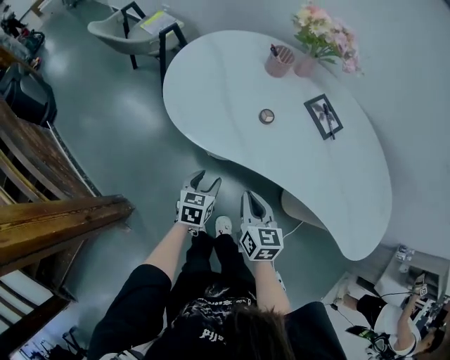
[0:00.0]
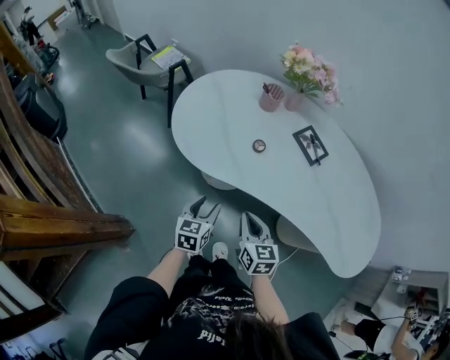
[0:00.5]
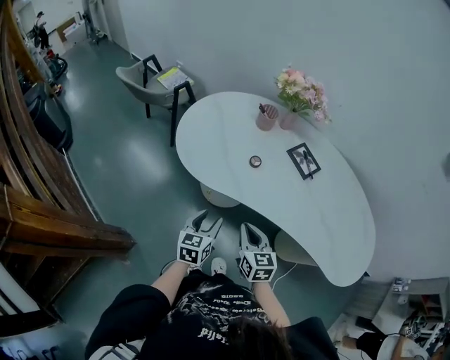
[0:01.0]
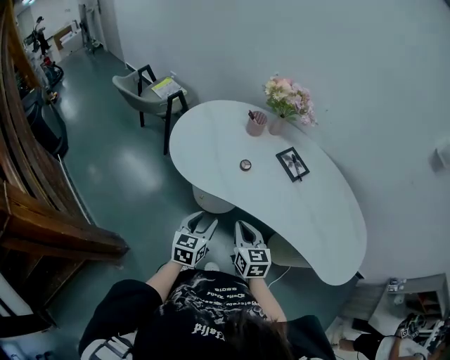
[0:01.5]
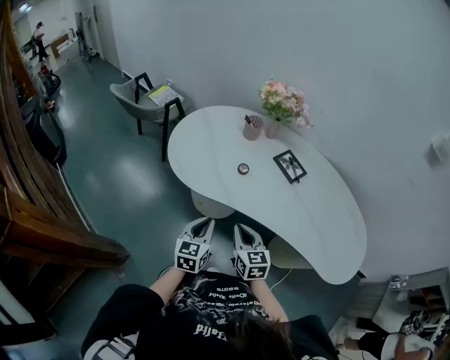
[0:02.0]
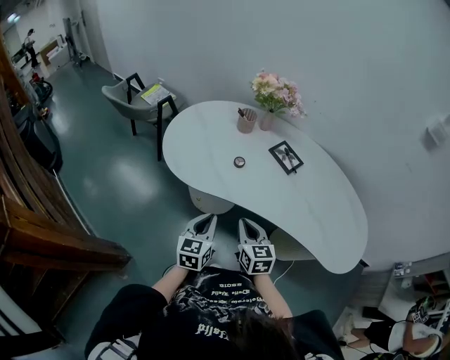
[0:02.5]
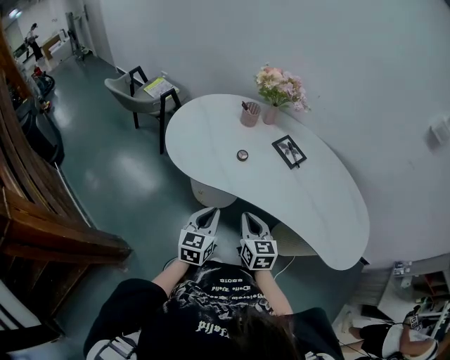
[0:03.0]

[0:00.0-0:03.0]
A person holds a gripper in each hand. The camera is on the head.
0:00.0 to 0:01.5: The right gripper goes some 10 cm upward, while the left gripper shifts approximately 20 cm upward and backward.
0:01.5 to 0:03.0: The left gripper closes up.

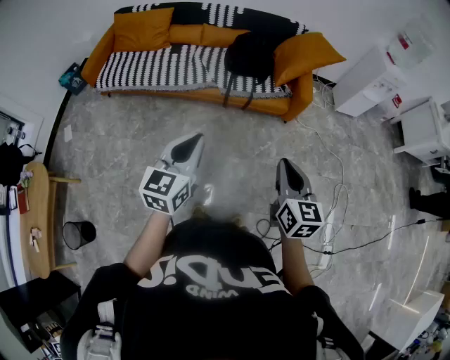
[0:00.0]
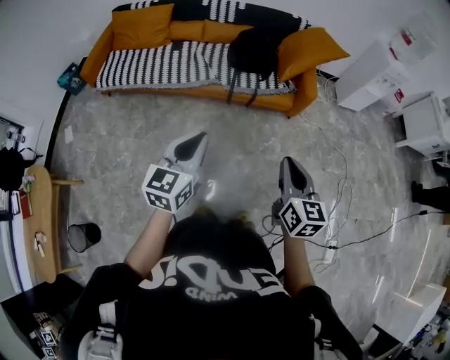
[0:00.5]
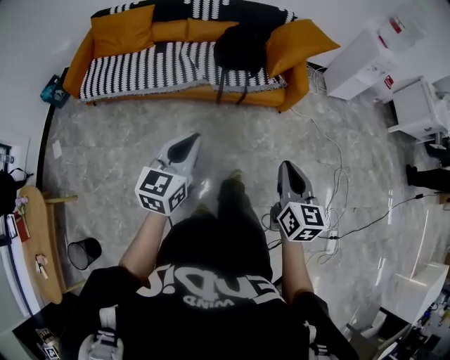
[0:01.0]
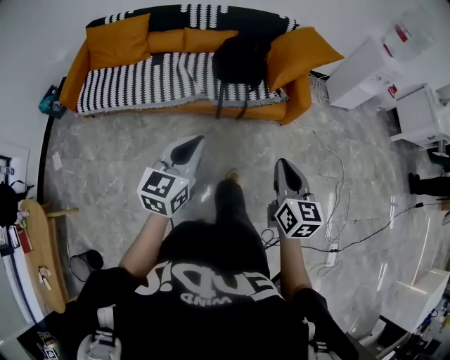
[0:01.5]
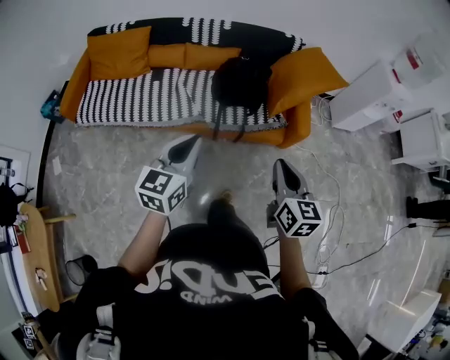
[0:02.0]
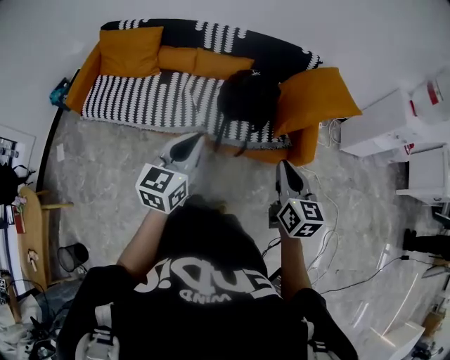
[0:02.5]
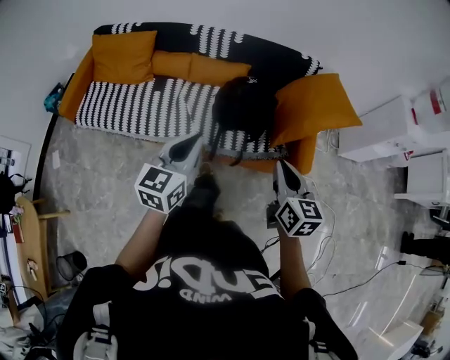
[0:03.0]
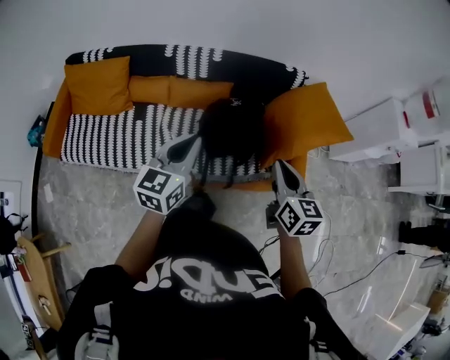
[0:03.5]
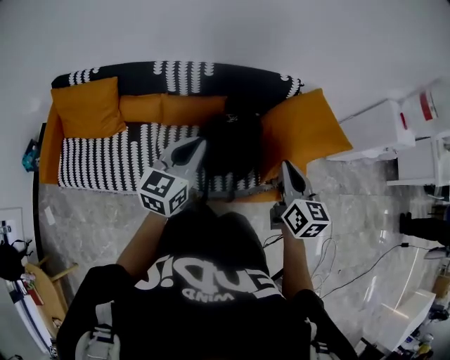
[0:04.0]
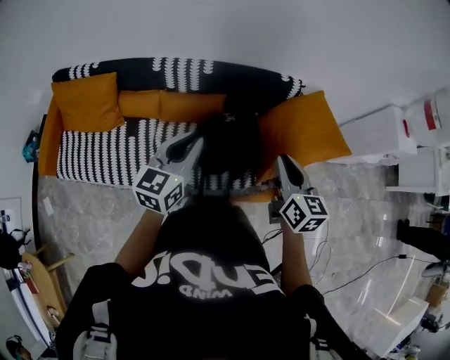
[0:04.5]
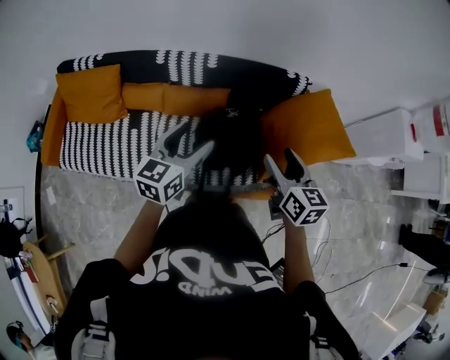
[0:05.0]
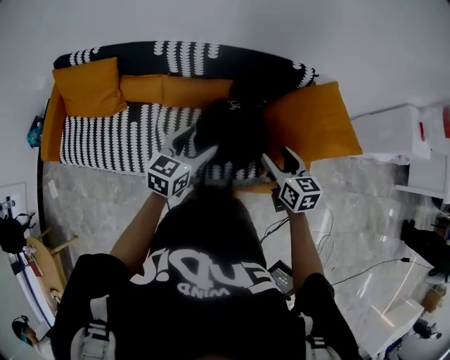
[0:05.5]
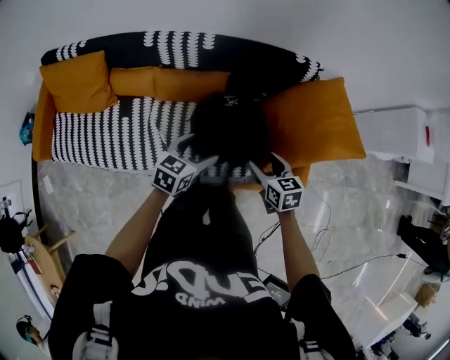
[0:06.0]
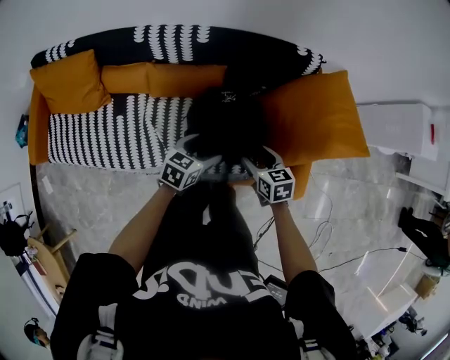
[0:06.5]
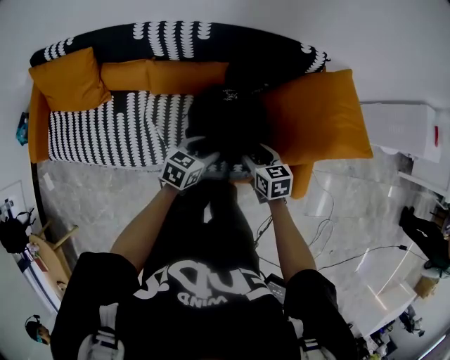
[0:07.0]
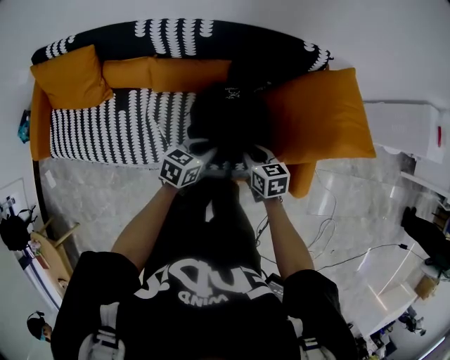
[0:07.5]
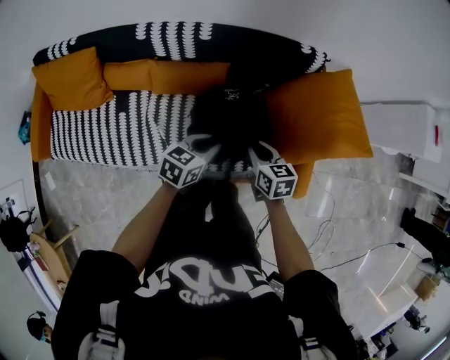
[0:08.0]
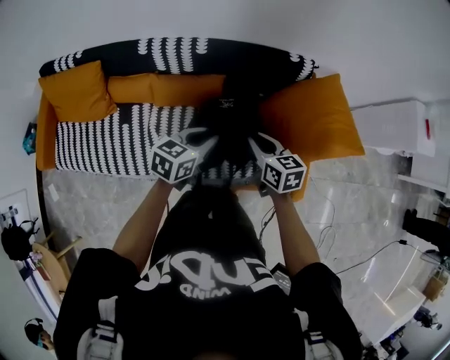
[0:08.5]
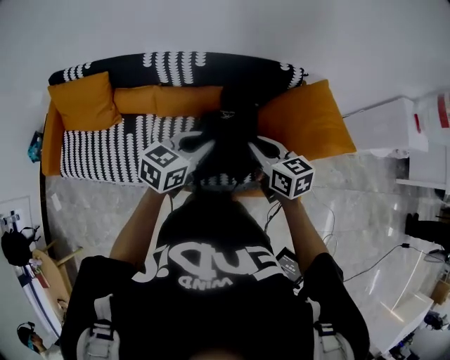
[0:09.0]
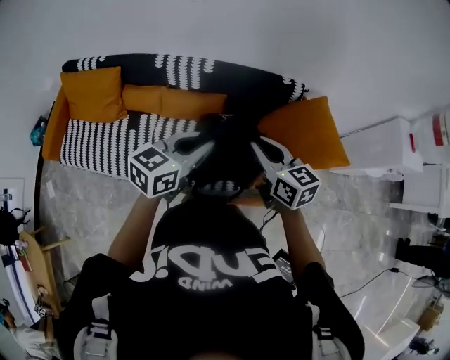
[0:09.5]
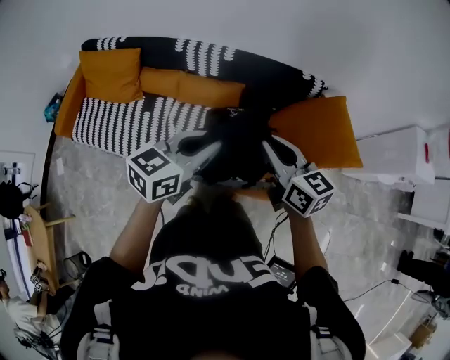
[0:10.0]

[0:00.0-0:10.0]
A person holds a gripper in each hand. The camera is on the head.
0:00.0 to 0:02.0: The two grippers go some 35 cm forward.
0:02.0 to 0:04.0: Both grippers are carried forward, about 50 cm.
0:04.0 to 0:06.0: The left gripper is displaced downward by roughly 25 cm, swivels roughly 30 degrees, and opens. The right gripper is displaced downward and forward by approximately 25 cm, swivels roughly 30 degrees, and opens.
0:06.0 to 0:08.0: The left gripper travels downward and back again, roughly 10 cm each way, and closes; the right gripper is displaced forward by about 5 cm, and closes.
0:08.0 to 0:10.0: The right gripper travels upward by about 30 cm, and rotates roughly 30 degrees. Meanwhile the left gripper travels upward and backward by approximately 30 cm, and turns by some 20 degrees.

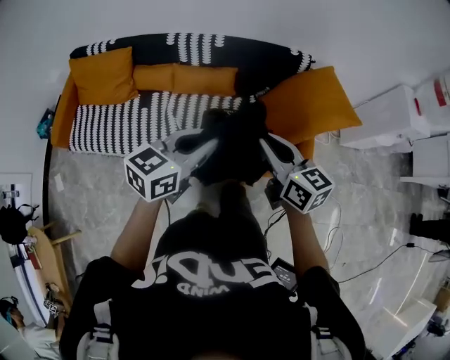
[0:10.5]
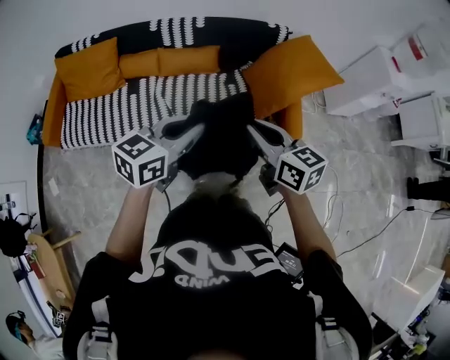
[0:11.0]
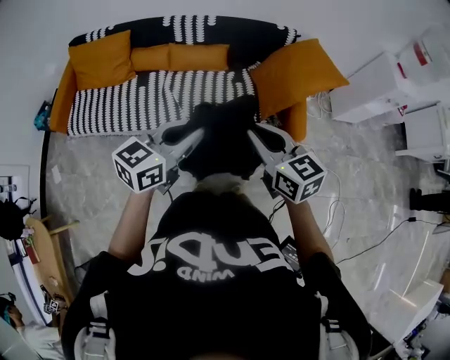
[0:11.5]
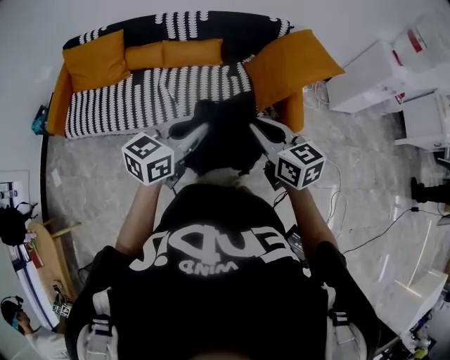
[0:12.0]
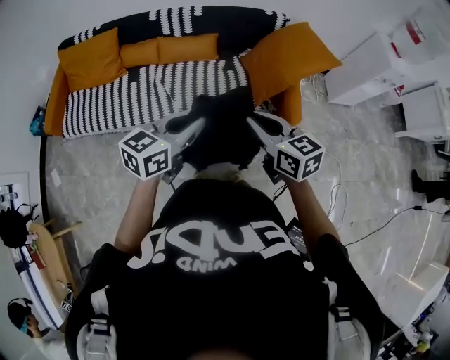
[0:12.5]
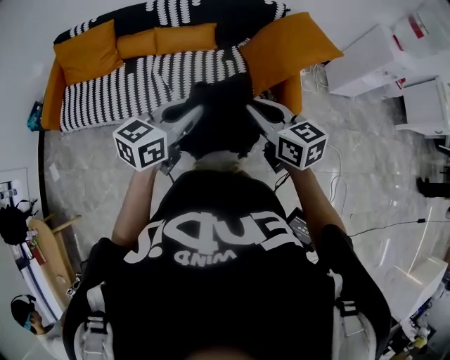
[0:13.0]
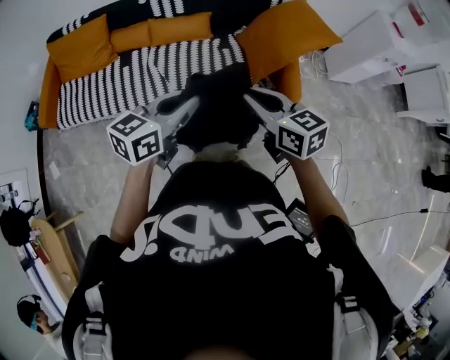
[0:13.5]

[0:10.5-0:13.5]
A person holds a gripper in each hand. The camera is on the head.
0:10.5 to 0:12.0: Both grippers move backward, some 20 cm.
0:12.0 to 0:13.5: The grippers stay close to where they were, moving slightly.

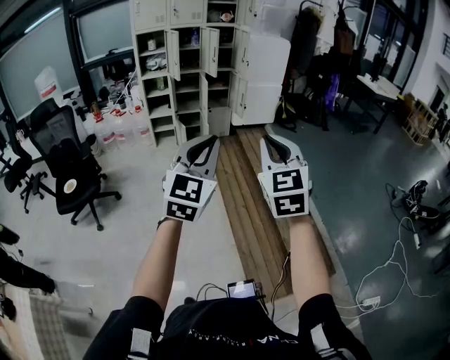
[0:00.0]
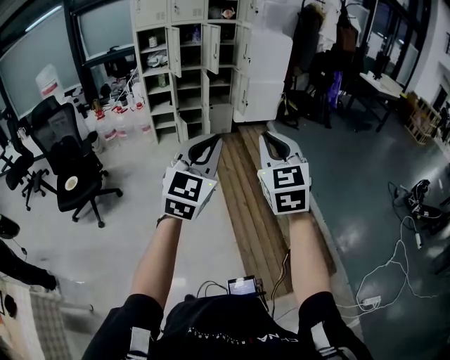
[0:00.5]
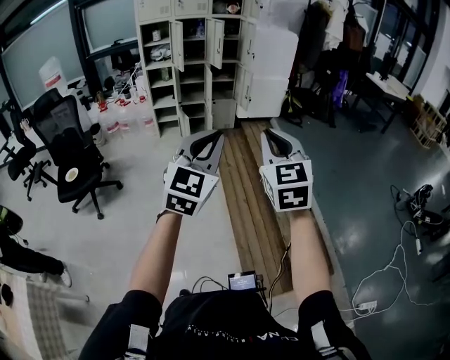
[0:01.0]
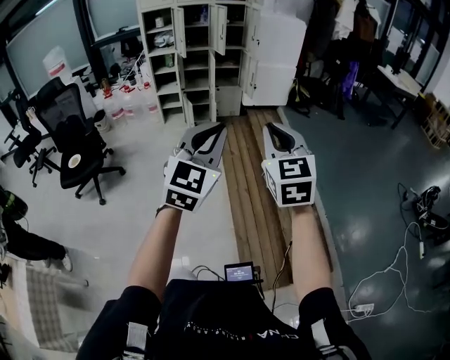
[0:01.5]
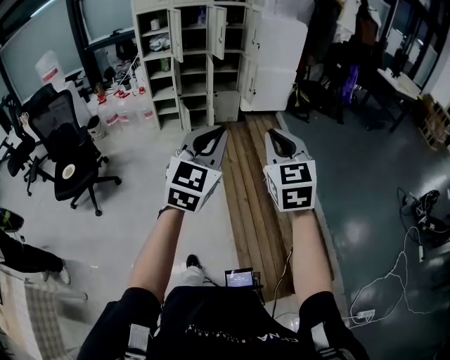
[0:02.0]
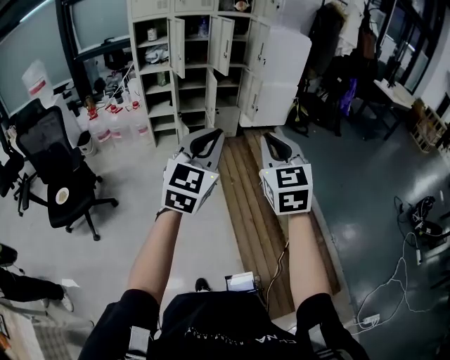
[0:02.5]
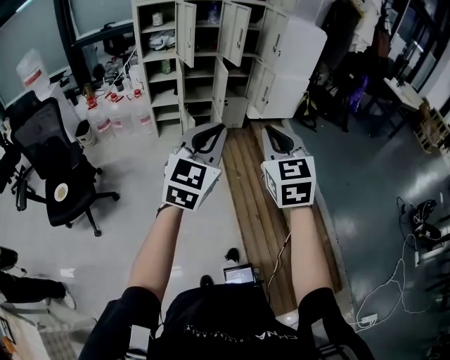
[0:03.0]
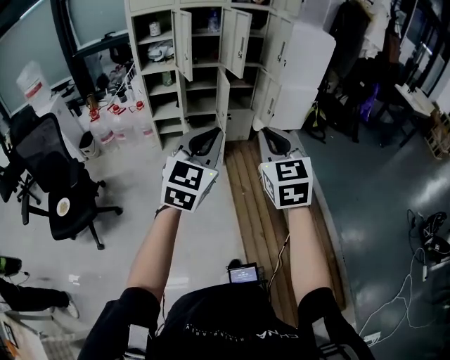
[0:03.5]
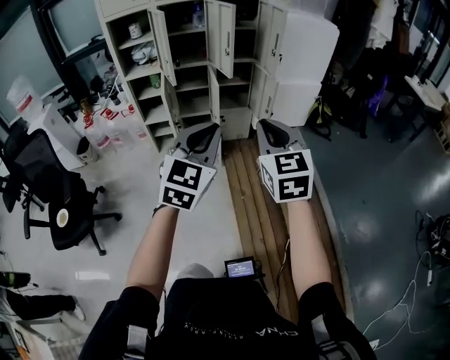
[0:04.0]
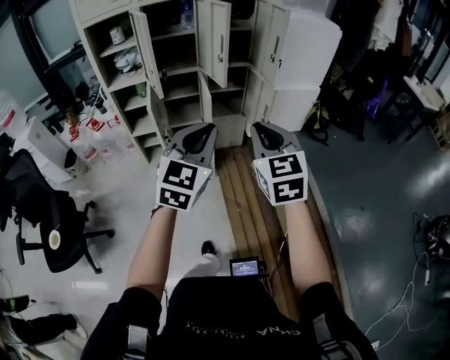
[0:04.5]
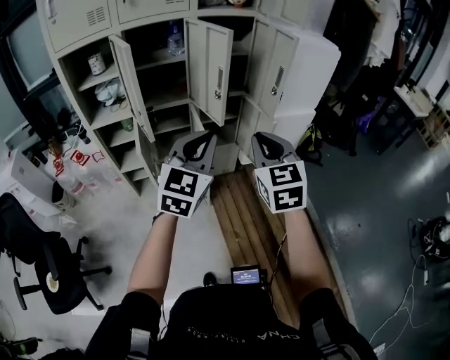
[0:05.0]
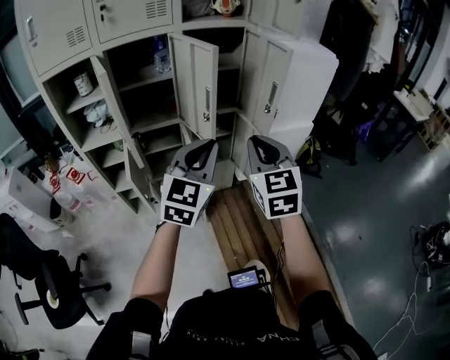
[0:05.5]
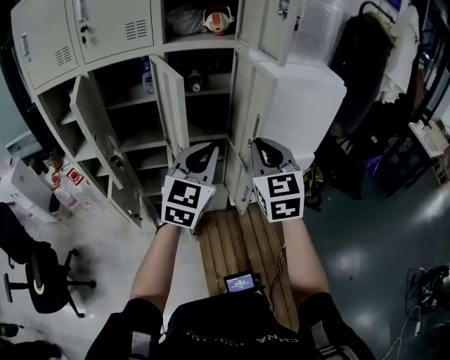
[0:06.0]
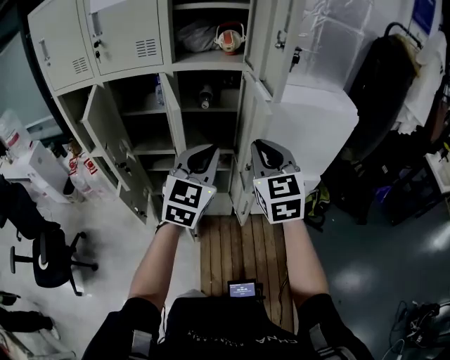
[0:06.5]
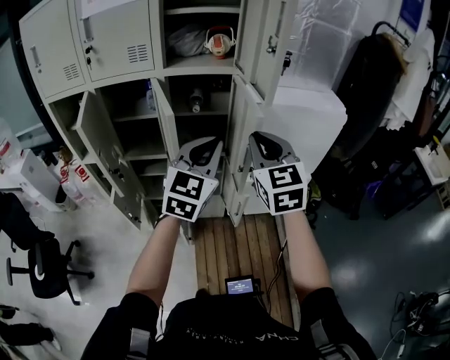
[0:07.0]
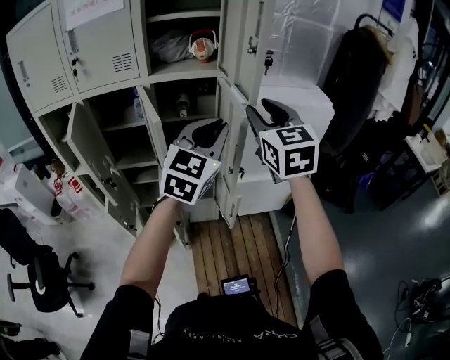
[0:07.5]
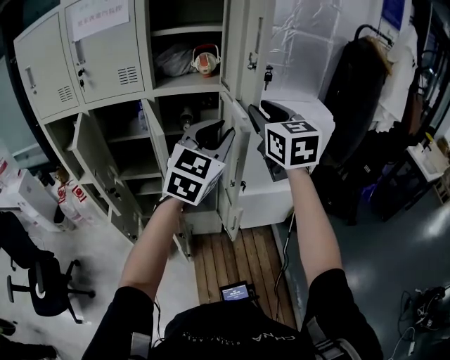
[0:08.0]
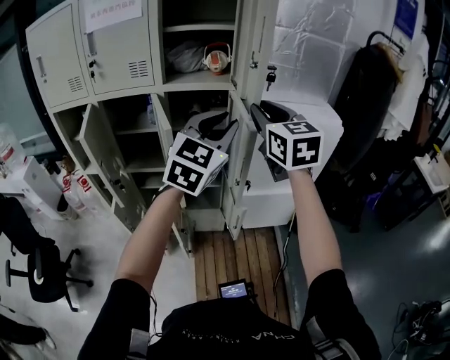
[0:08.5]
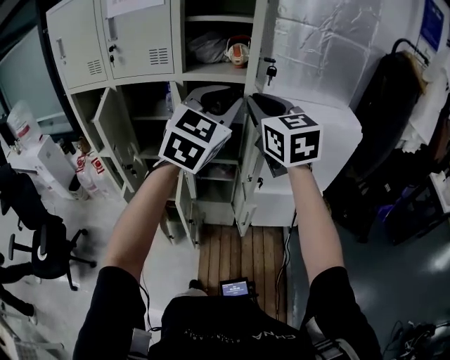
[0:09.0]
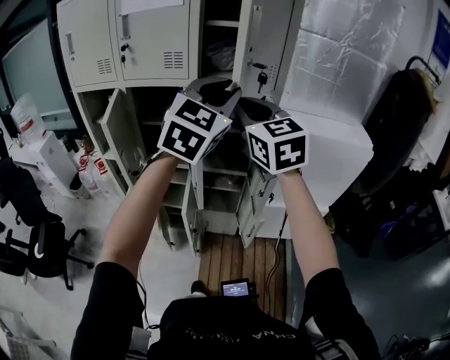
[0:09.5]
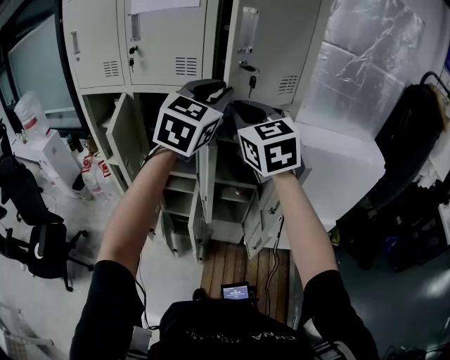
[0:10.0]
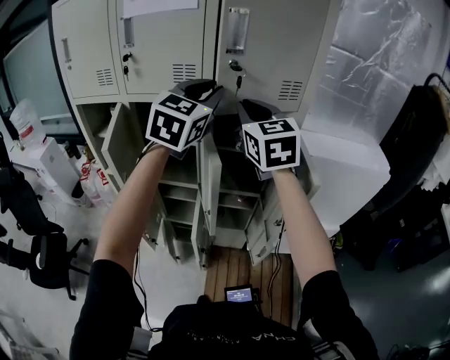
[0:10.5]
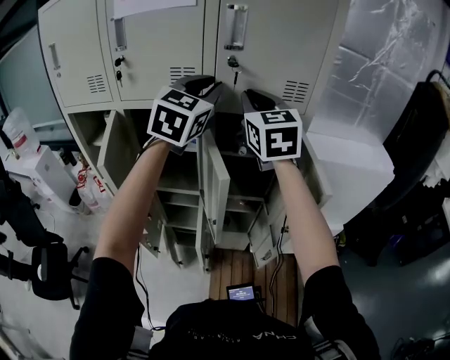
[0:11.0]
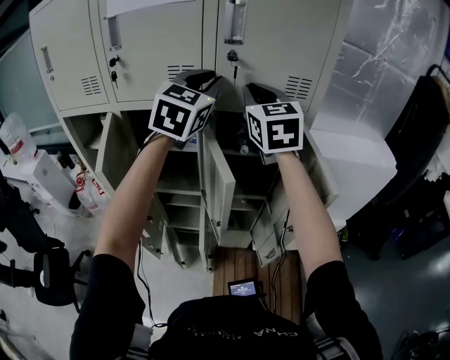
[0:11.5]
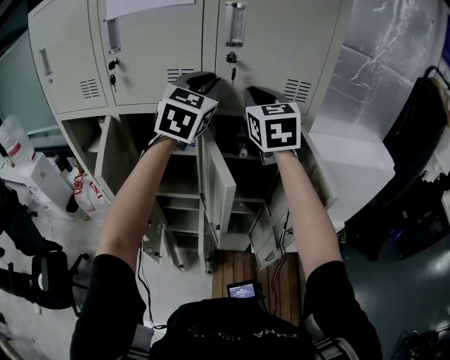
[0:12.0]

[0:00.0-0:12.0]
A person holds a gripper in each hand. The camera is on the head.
0:00.0 to 0:02.0: The right gripper goes roughly 15 cm forward and downward, while the left gripper moves forward, some 15 cm.
0:02.0 to 0:04.0: Both grippers are carried forward, some 50 cm.
0:04.0 to 0:06.0: The pair of grippers is taken forward, approximately 60 cm.
0:06.0 to 0:08.0: The right gripper heads upward and forward, covering about 25 cm, and opens. Meanwhile the left gripper is displaced upward, to the right and forward by some 25 cm.
0:08.0 to 0:10.0: The left gripper heads to the left, forward and upward, covering roughly 25 cm. The right gripper moves to the left, about 20 cm, and changes its angle by roughly 20 degrees.
0:10.0 to 0:12.0: The right gripper moves forward, some 15 cm; the left gripper heads forward and to the left, covering some 15 cm.
